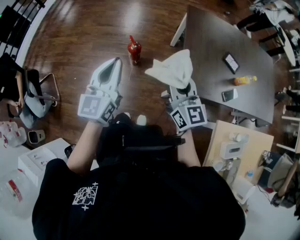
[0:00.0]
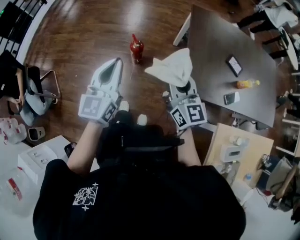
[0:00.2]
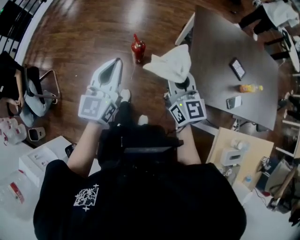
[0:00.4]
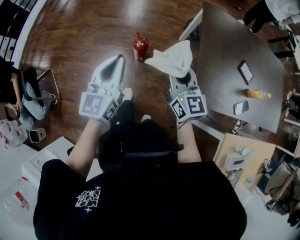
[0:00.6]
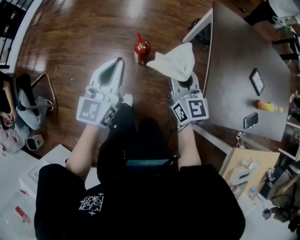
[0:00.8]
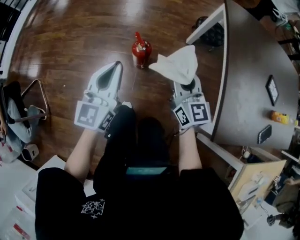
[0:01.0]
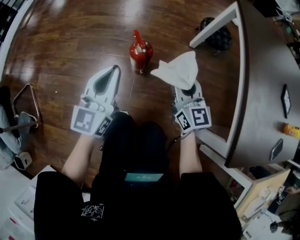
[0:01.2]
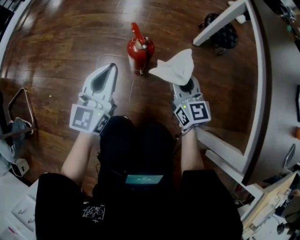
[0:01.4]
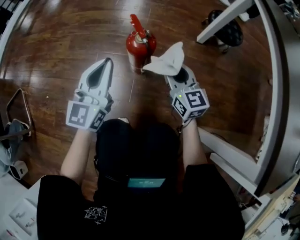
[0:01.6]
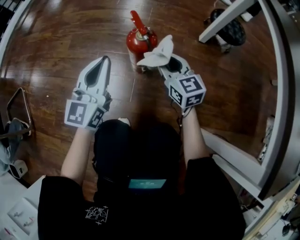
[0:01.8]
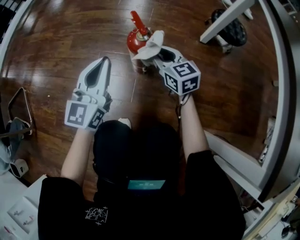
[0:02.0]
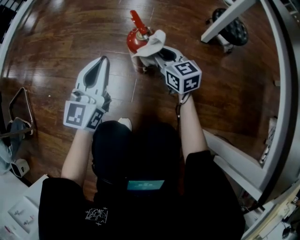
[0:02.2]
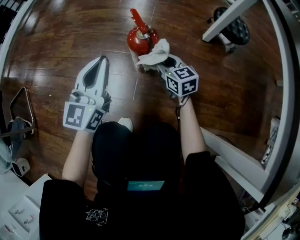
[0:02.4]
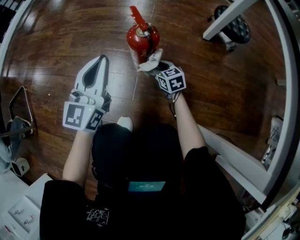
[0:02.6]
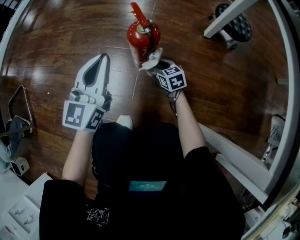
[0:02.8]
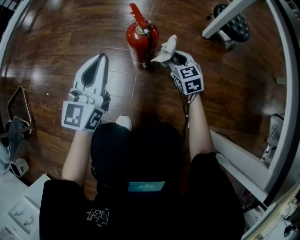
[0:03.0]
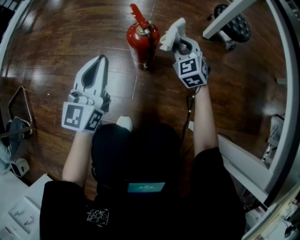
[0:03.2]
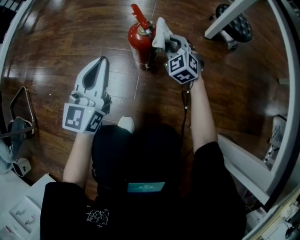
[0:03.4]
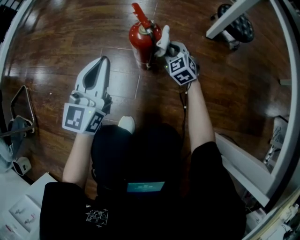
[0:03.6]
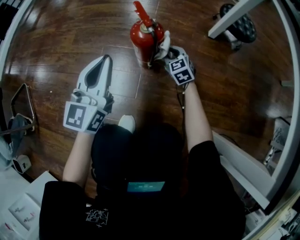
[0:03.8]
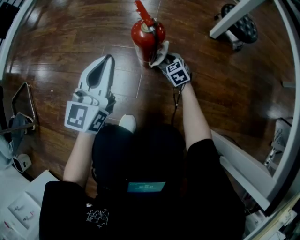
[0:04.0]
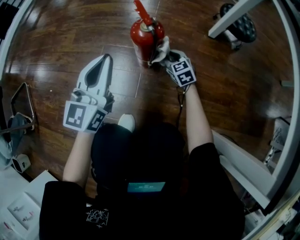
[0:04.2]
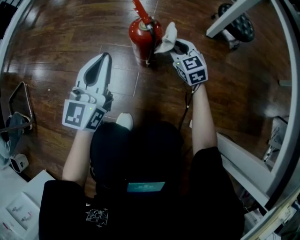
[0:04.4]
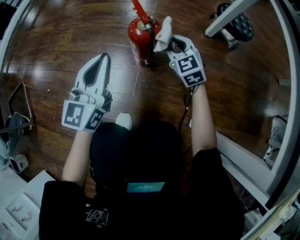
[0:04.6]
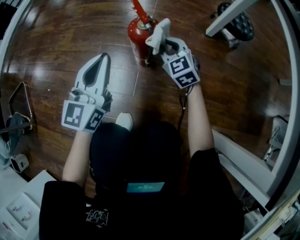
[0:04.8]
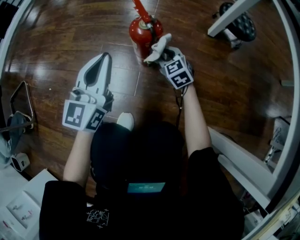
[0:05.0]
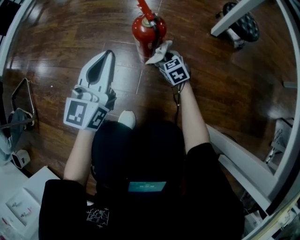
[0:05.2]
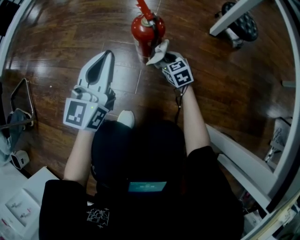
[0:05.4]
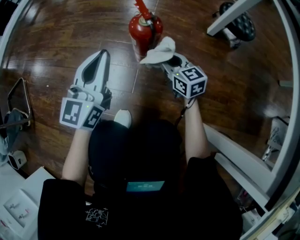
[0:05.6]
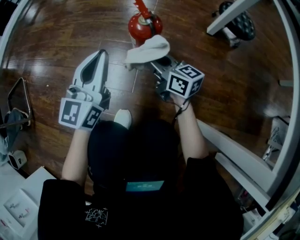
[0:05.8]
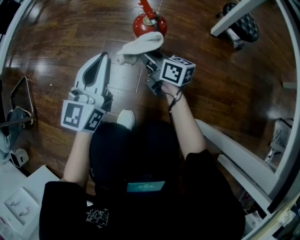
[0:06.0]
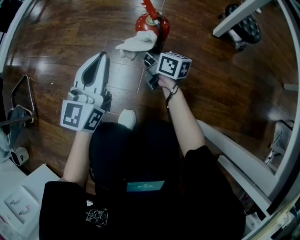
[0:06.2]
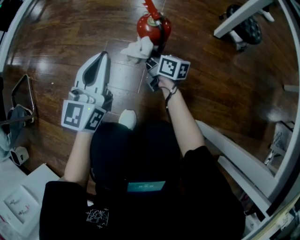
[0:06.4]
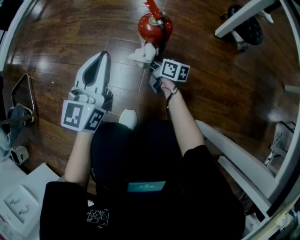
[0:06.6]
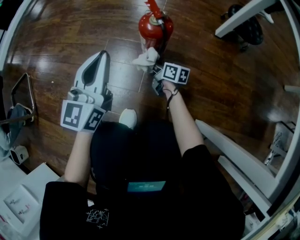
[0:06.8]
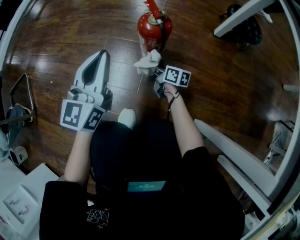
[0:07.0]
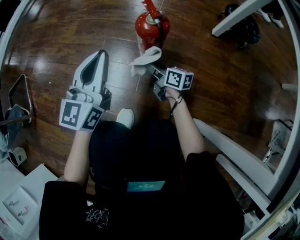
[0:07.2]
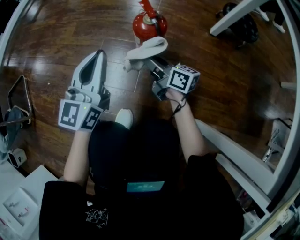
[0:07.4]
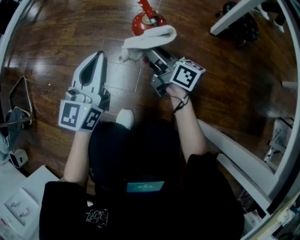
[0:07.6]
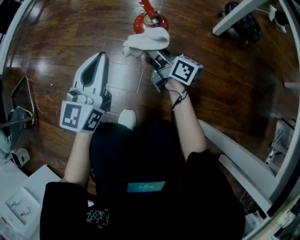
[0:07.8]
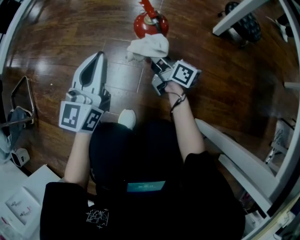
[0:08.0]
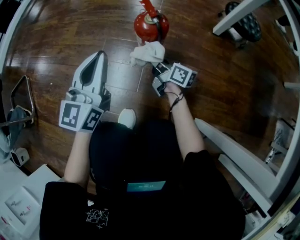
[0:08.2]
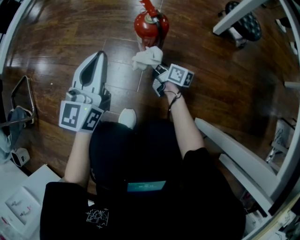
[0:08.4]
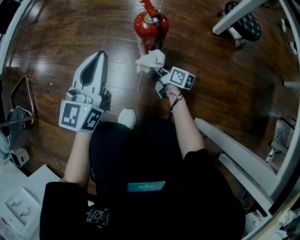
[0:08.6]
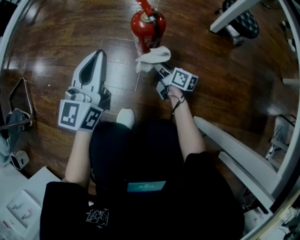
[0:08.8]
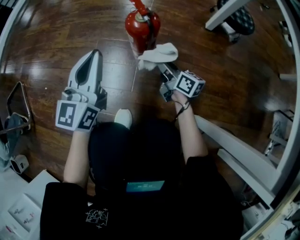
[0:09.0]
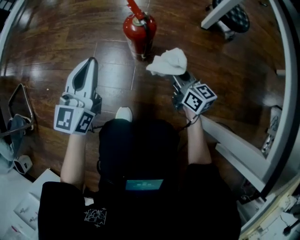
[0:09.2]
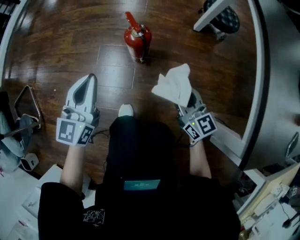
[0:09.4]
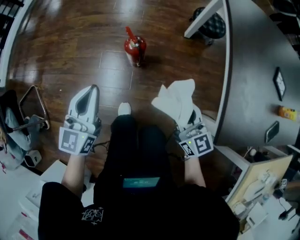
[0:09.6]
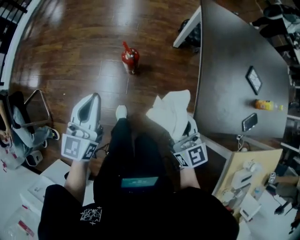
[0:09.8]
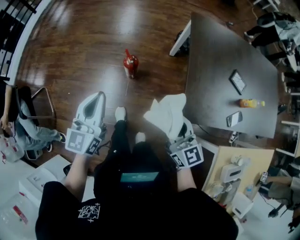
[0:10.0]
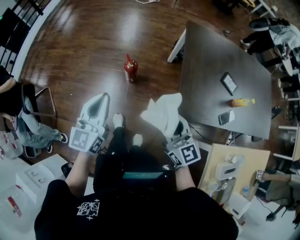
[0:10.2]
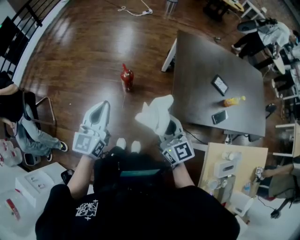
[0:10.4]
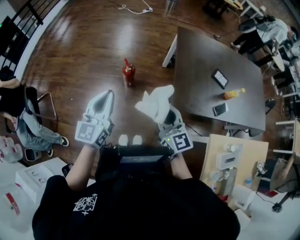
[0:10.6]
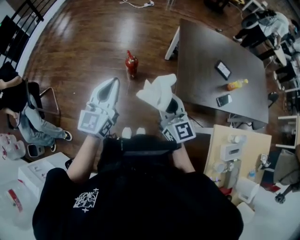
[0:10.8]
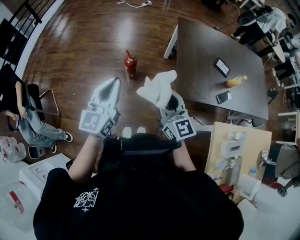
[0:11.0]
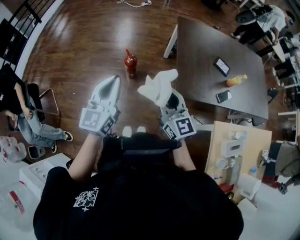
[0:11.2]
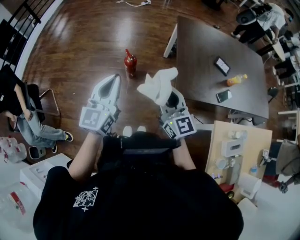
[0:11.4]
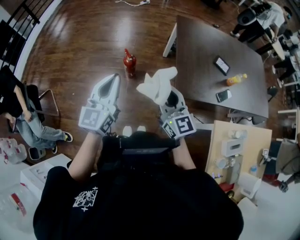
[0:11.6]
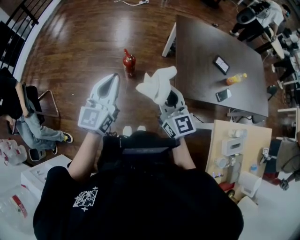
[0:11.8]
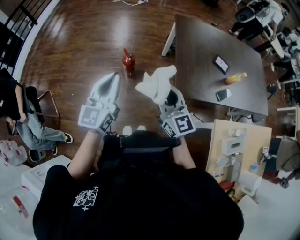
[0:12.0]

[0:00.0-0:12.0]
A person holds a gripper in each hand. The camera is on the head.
0:00.0 to 0:01.6: Both grippers move downward and forward, roughly 70 cm.
0:01.6 to 0:03.0: The right gripper is displaced downward by some 15 cm, and swivels approximately 20 degrees.
0:03.0 to 0:04.4: The right gripper goes up and down, roughly 20 cm each way, reversing 2 times.
0:04.4 to 0:06.0: The right gripper goes approximately 15 cm to the left, goes downward and returns, some 10 cm each way, and rolls clockwise, seen from behind, by some 50 degrees.
0:06.0 to 0:07.6: The right gripper reaches some 20 cm downward, then returns.
0:07.6 to 0:09.0: The right gripper shifts about 15 cm downward and to the right.
0:09.0 to 0:10.4: The grippers both shift upward and backward by approximately 80 cm. The right gripper twists approximately 40 degrees counterclockwise, seen from behind.
0:10.4 to 0:12.0: There are only small adjustments of the grippers.

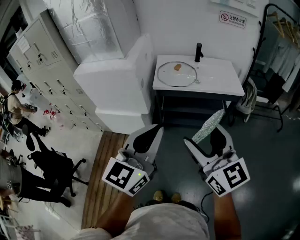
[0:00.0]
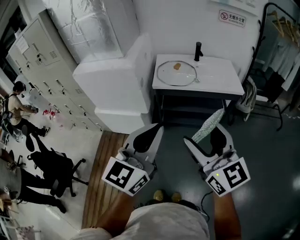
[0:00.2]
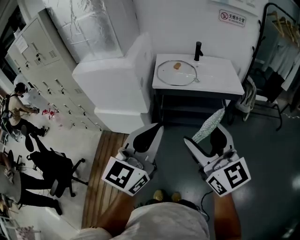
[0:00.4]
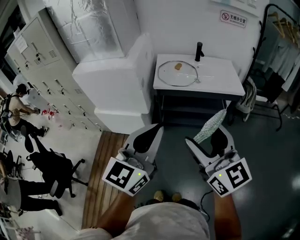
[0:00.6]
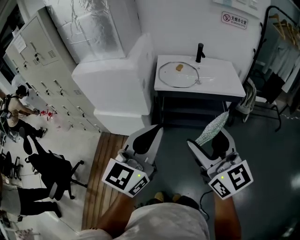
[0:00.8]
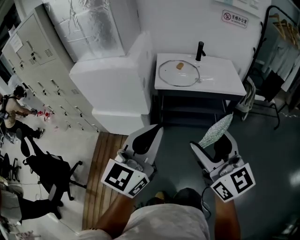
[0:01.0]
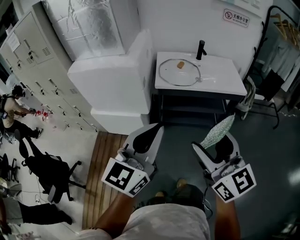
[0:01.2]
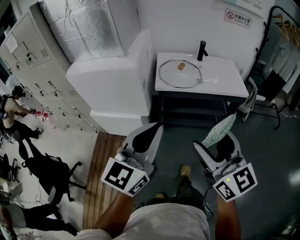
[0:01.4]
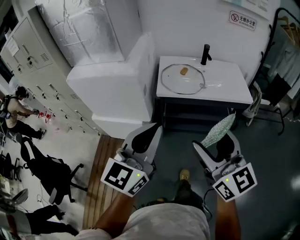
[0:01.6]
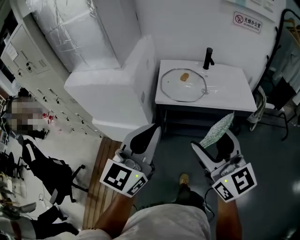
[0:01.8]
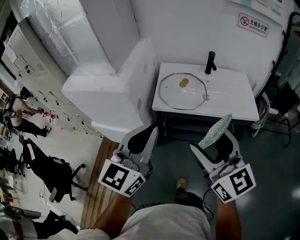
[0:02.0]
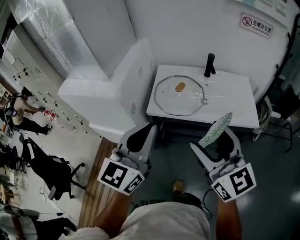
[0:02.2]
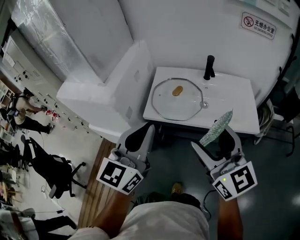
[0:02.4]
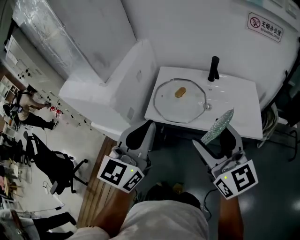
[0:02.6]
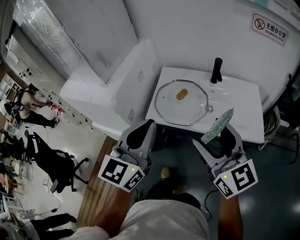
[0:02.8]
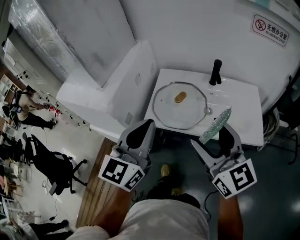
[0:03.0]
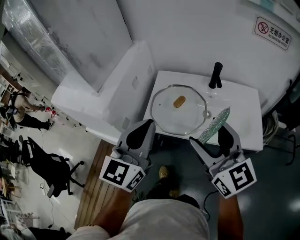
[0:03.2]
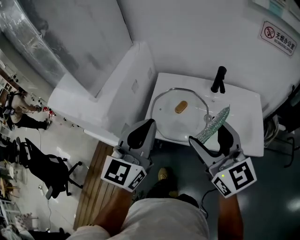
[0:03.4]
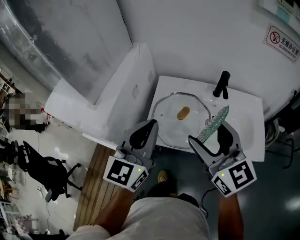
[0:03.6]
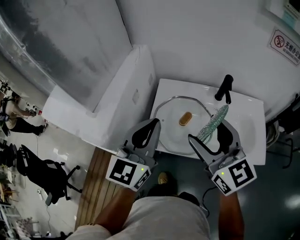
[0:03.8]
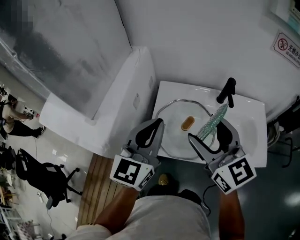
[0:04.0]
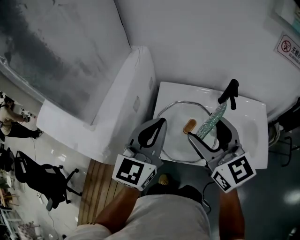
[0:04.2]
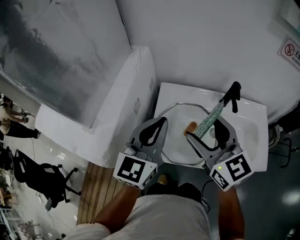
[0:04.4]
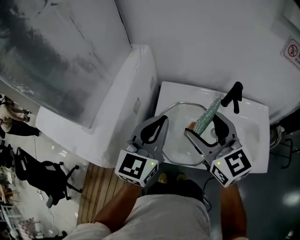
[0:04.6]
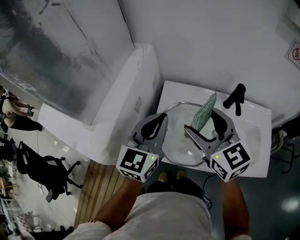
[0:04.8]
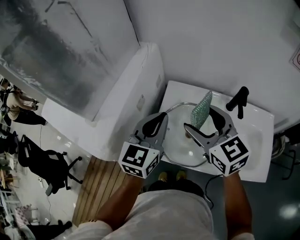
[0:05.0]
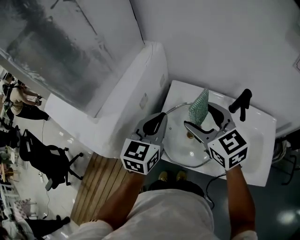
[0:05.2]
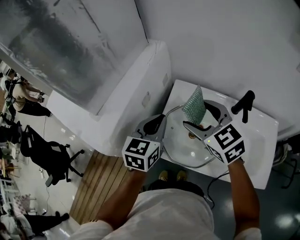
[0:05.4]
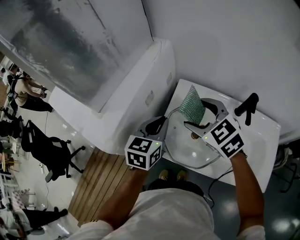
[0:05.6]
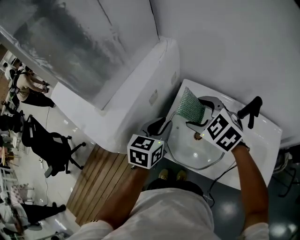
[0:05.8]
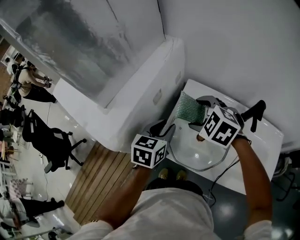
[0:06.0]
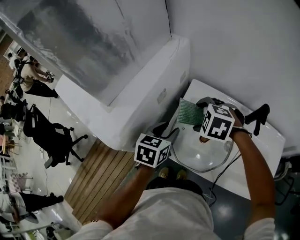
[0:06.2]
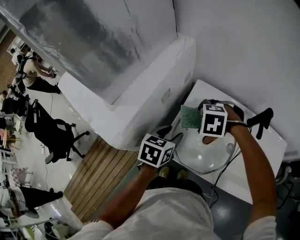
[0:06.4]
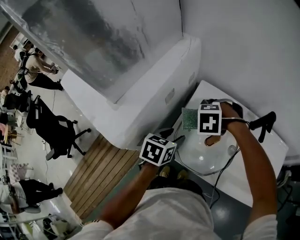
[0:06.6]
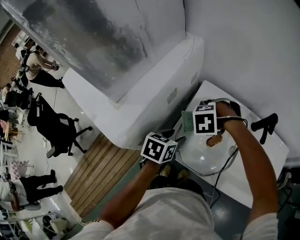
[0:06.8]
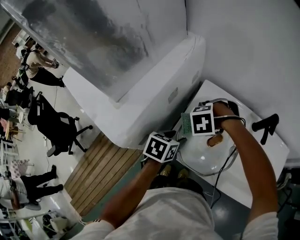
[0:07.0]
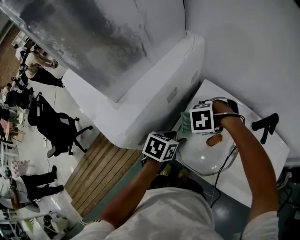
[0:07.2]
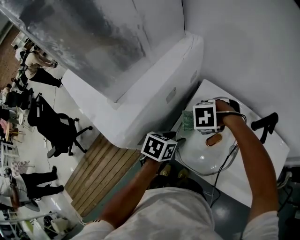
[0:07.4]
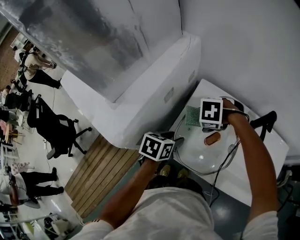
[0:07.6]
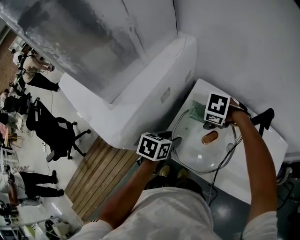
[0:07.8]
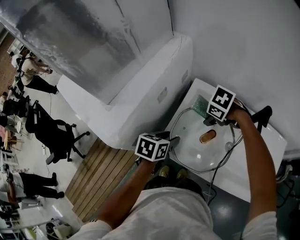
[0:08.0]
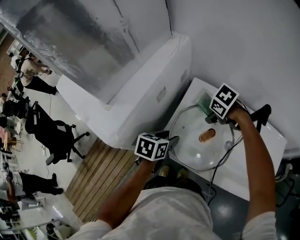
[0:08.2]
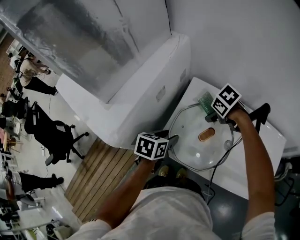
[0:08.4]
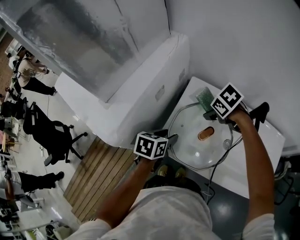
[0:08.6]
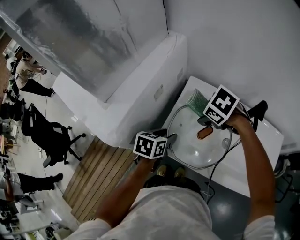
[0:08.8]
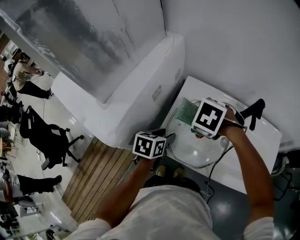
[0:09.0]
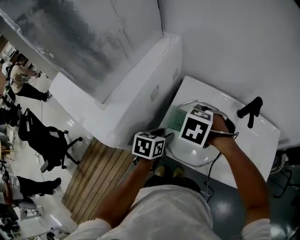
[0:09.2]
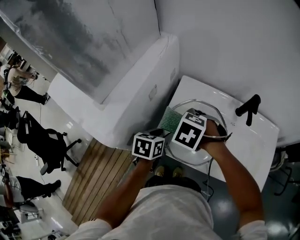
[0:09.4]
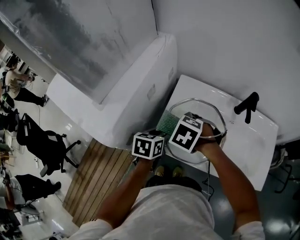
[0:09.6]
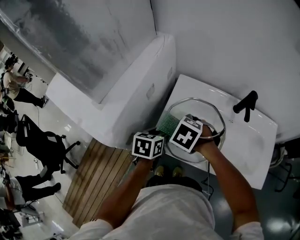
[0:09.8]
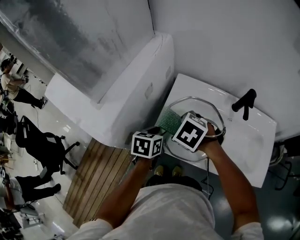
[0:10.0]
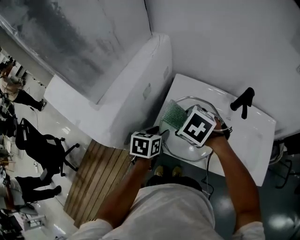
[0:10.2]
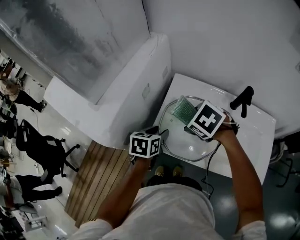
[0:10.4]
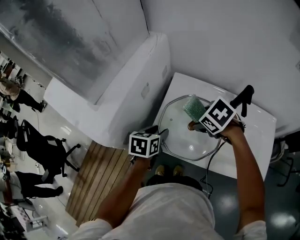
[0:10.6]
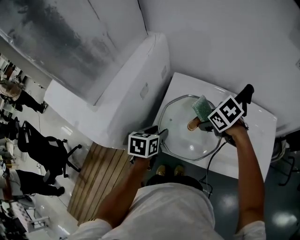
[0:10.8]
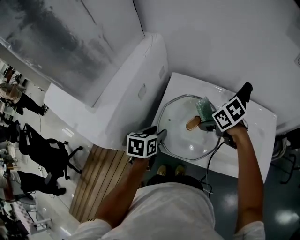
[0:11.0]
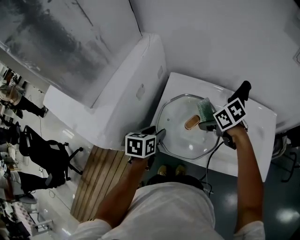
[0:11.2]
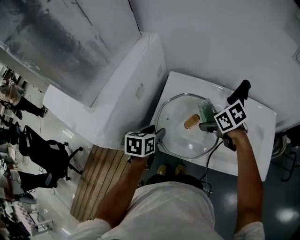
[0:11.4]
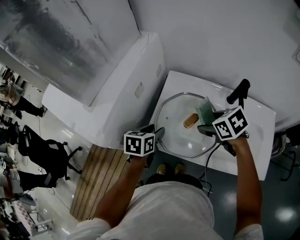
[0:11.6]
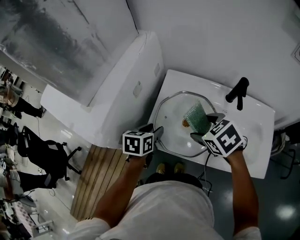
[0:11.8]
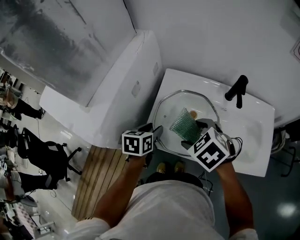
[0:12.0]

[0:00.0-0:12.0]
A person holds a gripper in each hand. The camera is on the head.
0:00.0 to 0:01.6: The left gripper shifts about 10 cm forward and to the left; the right gripper moves forward, about 10 cm.
0:01.6 to 0:03.0: The grippers both shift forward and to the right by roughly 30 cm.
0:03.0 to 0:04.4: The two grippers go some 20 cm forward.
0:04.4 to 0:06.0: The left gripper moves downward, about 15 cm, changes its angle by roughly 40 degrees, and opens; the right gripper shifts about 15 cm downward, forward and to the left, and tips its fingers downward by approximately 40 degrees.
0:06.0 to 0:07.6: Both grippers travel together downward, roughly 10 cm. The left gripper turns by approximately 20 degrees, while the right gripper tilts its fingers some 30 degrees downward.
0:07.6 to 0:09.0: The right gripper goes approximately 5 cm upward, and changes its angle by roughly 20 degrees.
0:10.4 to 0:12.0: The right gripper goes roughly 5 cm backward, and travels to the right and back again, some 10 cm each way.
